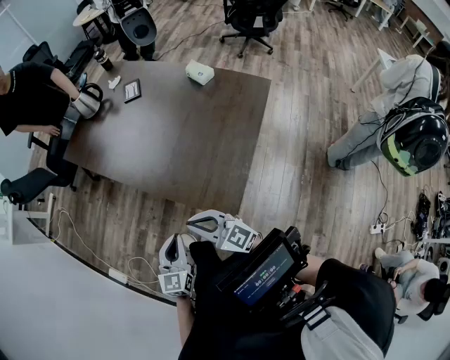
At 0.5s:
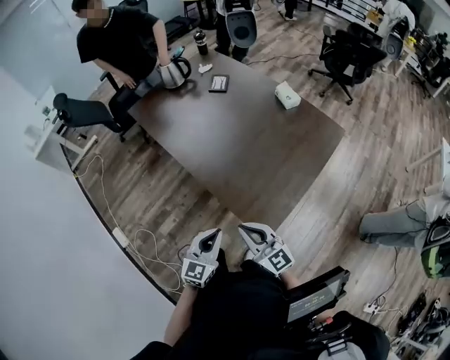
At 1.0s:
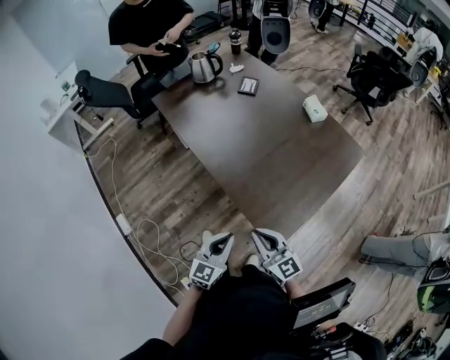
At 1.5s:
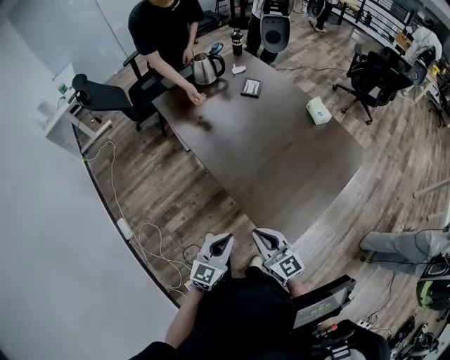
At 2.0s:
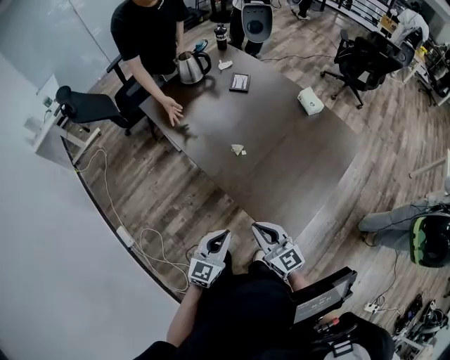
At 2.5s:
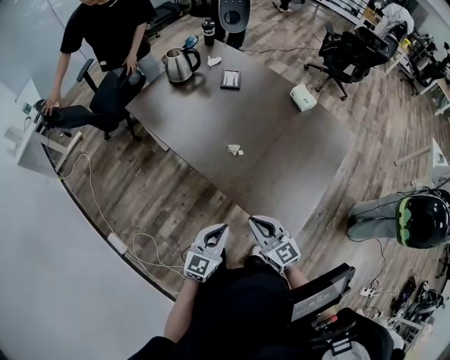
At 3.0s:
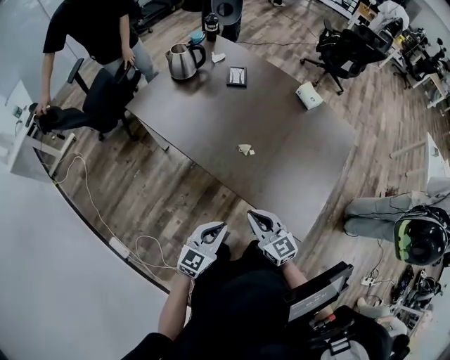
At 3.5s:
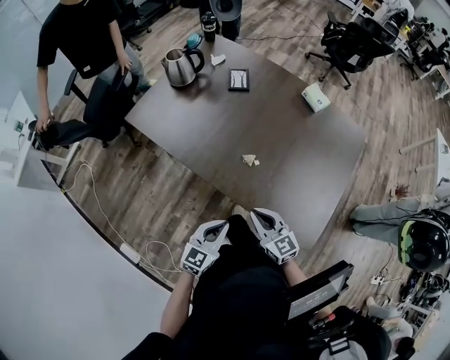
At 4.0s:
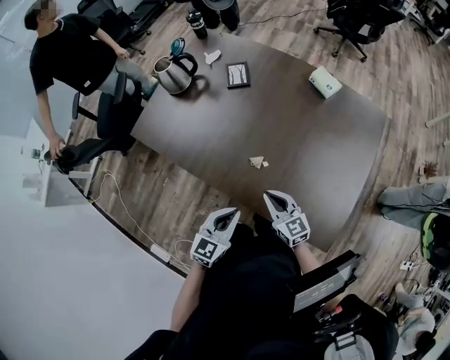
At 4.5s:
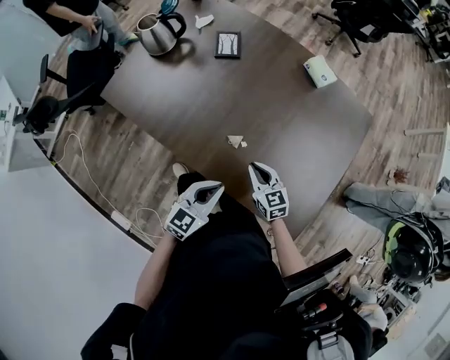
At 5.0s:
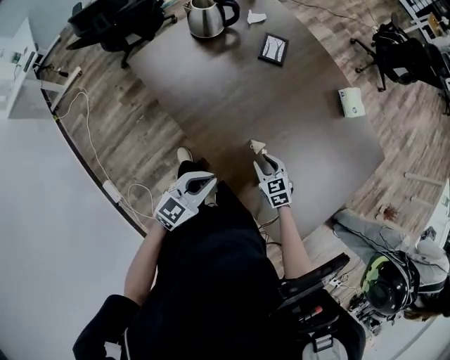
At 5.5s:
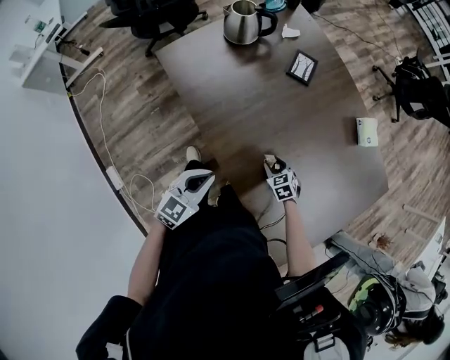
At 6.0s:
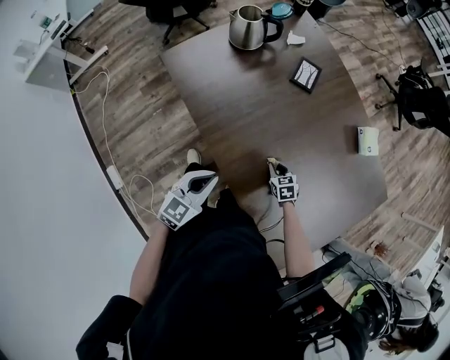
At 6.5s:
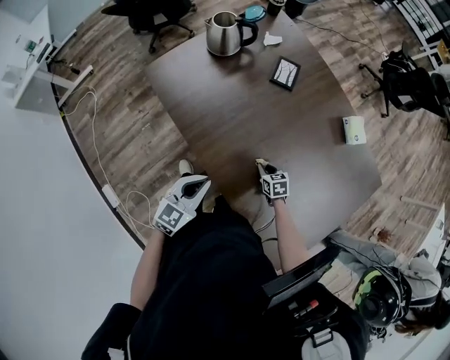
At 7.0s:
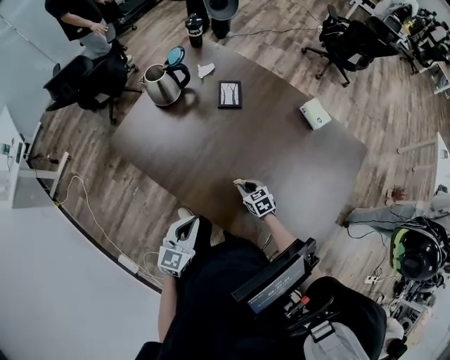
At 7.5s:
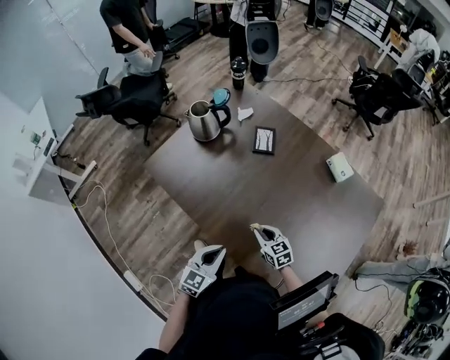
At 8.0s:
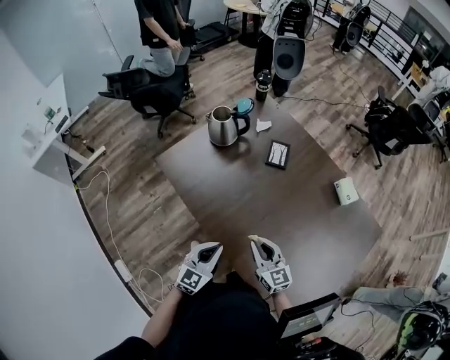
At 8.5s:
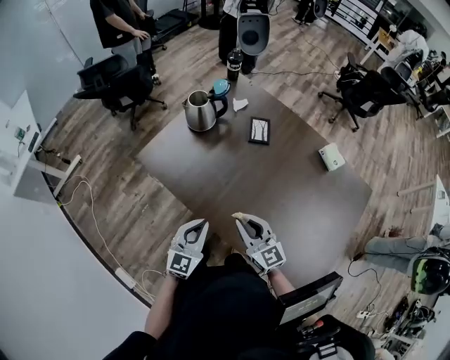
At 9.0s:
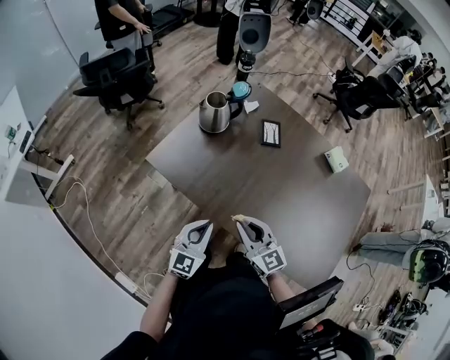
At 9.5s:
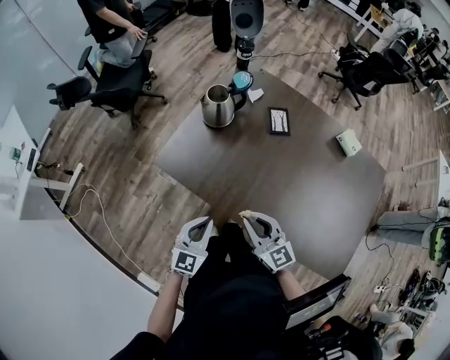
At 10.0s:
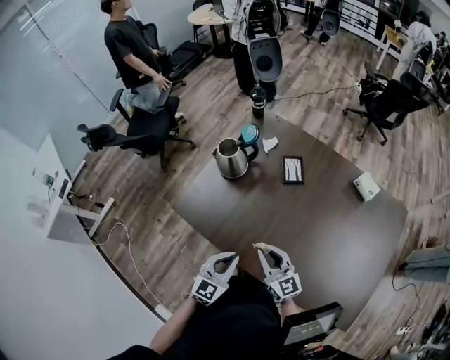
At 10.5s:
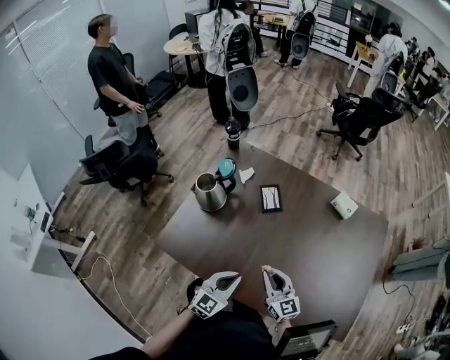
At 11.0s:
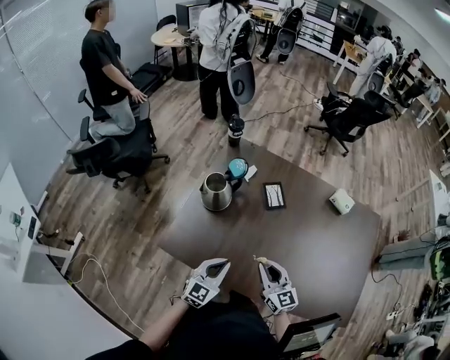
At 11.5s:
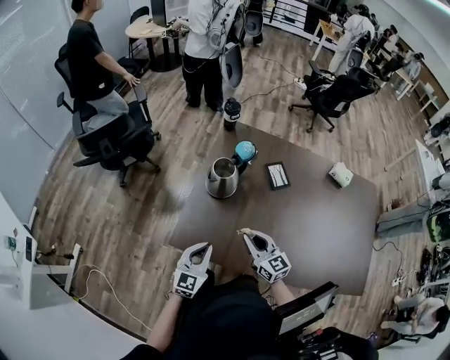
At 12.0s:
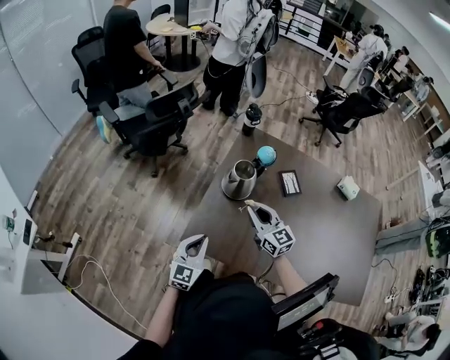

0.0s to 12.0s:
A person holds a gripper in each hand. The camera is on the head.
0.0s to 2.0s: The right gripper is displaced forward by about 5 cm. Meanwhile the left gripper is displaced to the left and forward by some 10 cm.
2.0s to 4.0s: The grippers both shift forward by roughly 25 cm. The right gripper rotates approximately 20 degrees, while the left gripper swivels some 20 degrees.
4.0s to 6.0s: The left gripper is displaced to the left and forward by some 15 cm. The right gripper heads downward and forward, covering roughly 25 cm, angles its fingers downward, by about 40 degrees, and opens, then closes again.
6.0s to 8.0s: The right gripper shifts some 25 cm upward, and tips its fingers upward by about 40 degrees.
8.0s to 10.0s: The right gripper moves to the left and forward, approximately 15 cm. The left gripper moves forward and to the left, some 15 cm.
10.0s to 12.0s: The left gripper is displaced to the left by about 30 cm, while the right gripper shifts roughly 30 cm to the left and forward.

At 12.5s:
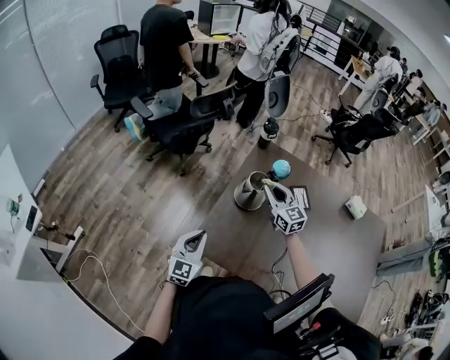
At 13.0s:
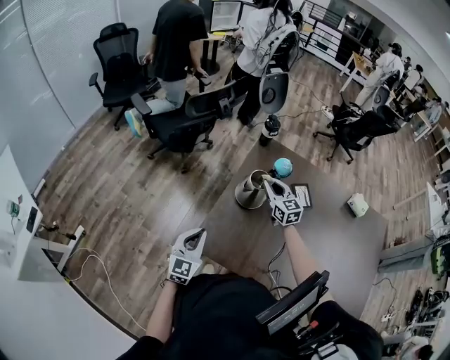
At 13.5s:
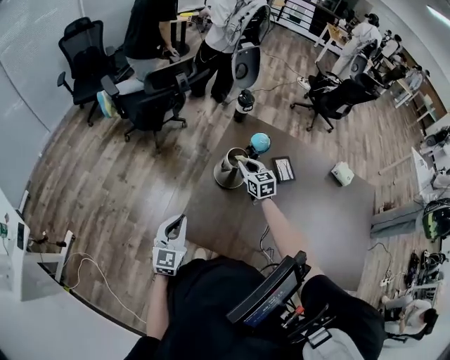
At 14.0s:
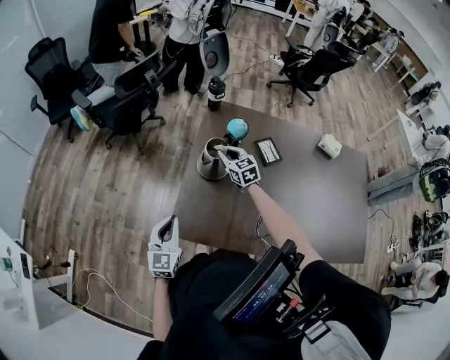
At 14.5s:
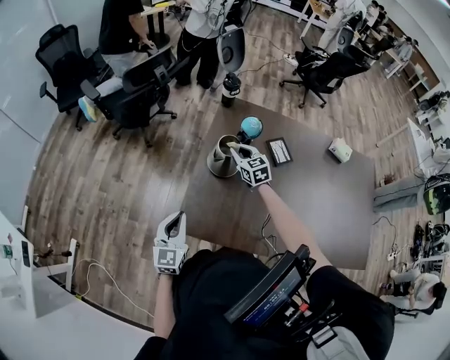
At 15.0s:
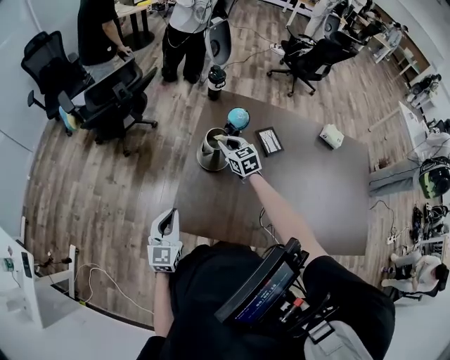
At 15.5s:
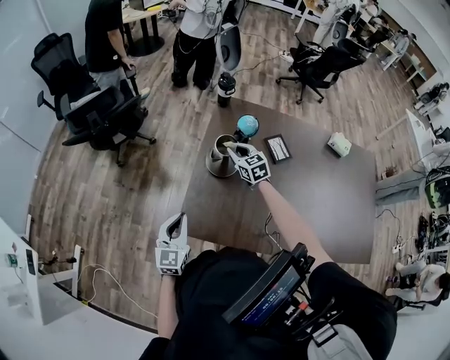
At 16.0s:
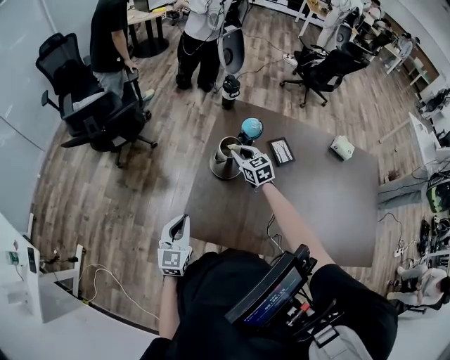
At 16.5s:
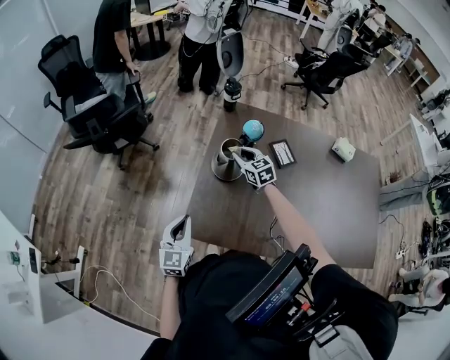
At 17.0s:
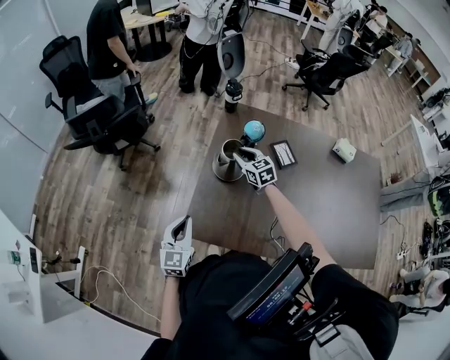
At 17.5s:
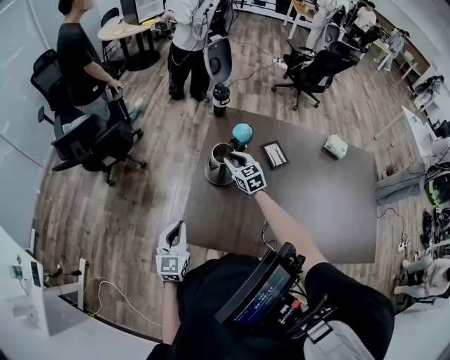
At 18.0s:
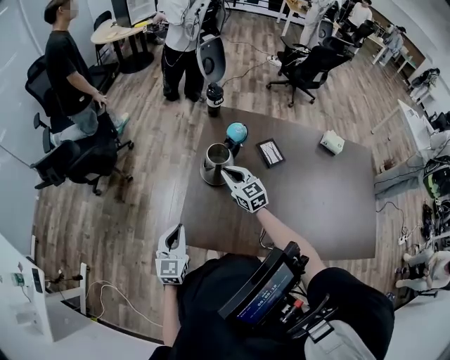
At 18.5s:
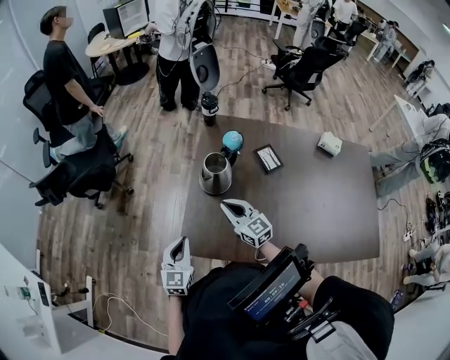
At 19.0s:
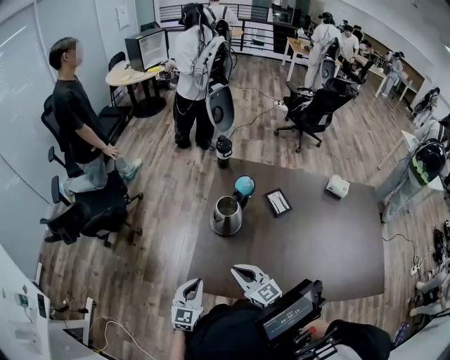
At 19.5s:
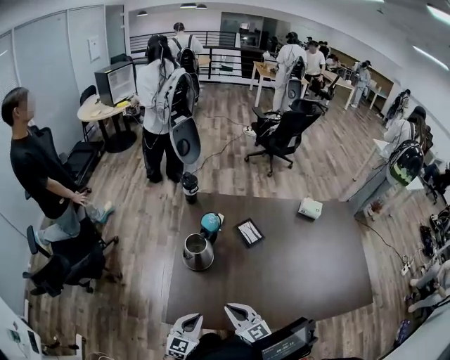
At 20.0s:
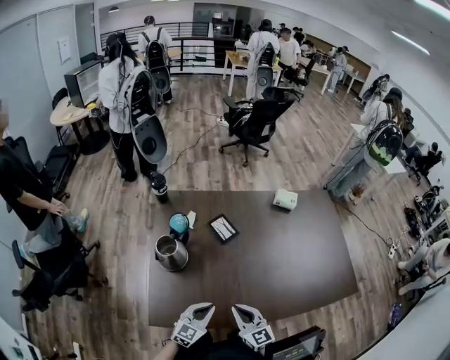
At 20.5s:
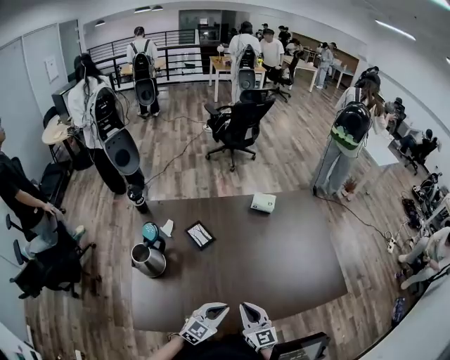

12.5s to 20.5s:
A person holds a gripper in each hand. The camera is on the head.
12.5s to 14.5s: The right gripper travels downward and forward by approximately 15 cm, and turns by some 20 degrees.
14.5s to 16.5s: Neither gripper changes place.
16.5s to 18.5s: The right gripper travels backward by roughly 15 cm.
18.5s to 20.5s: The right gripper shifts by approximately 40 cm, and swivels about 40 degrees; the left gripper shifts by some 40 cm, and rotates about 60 degrees.

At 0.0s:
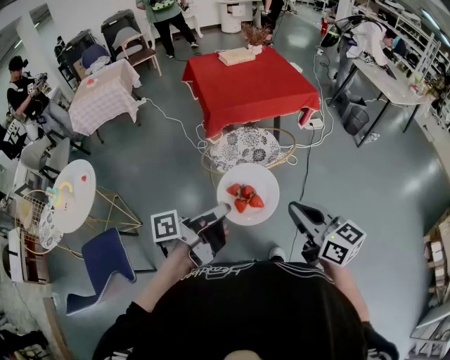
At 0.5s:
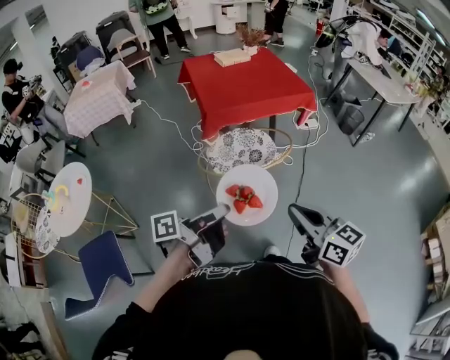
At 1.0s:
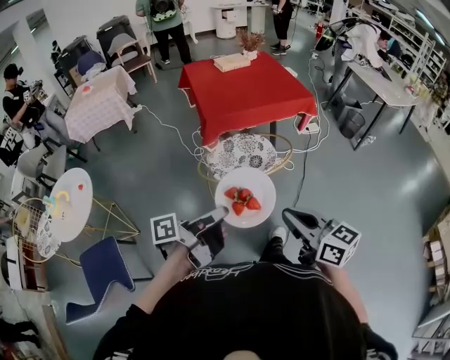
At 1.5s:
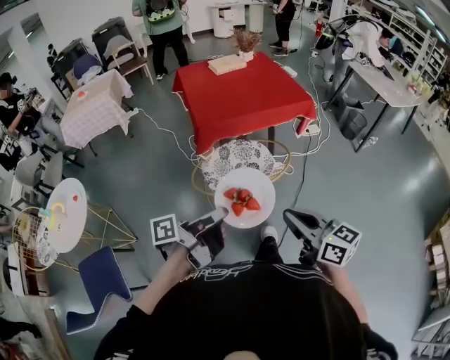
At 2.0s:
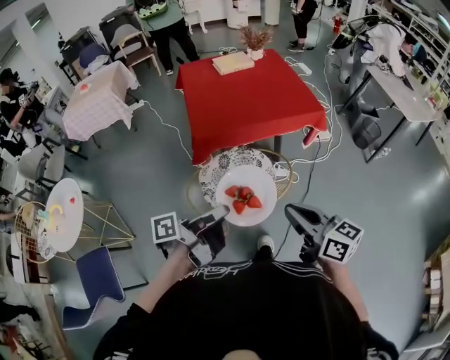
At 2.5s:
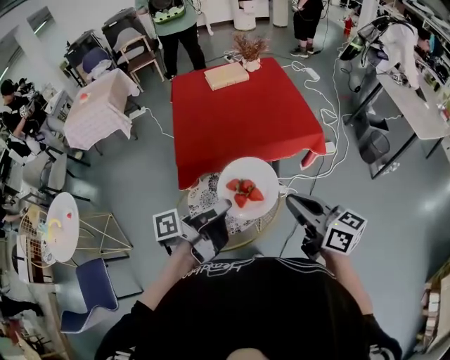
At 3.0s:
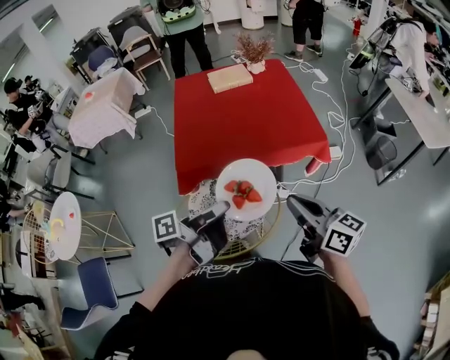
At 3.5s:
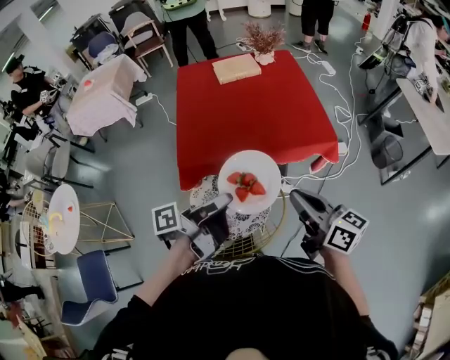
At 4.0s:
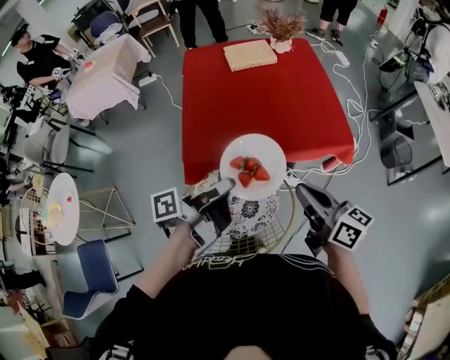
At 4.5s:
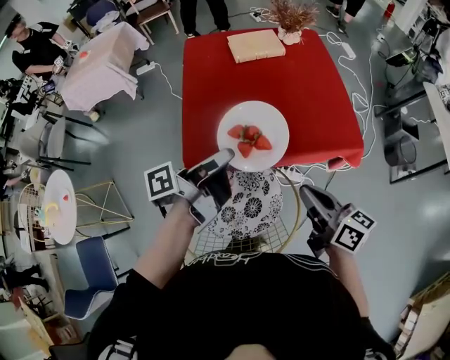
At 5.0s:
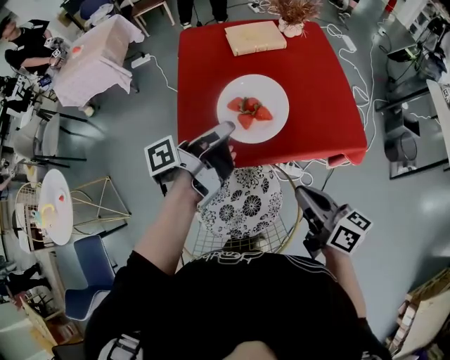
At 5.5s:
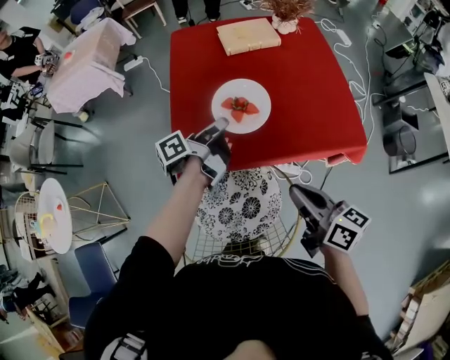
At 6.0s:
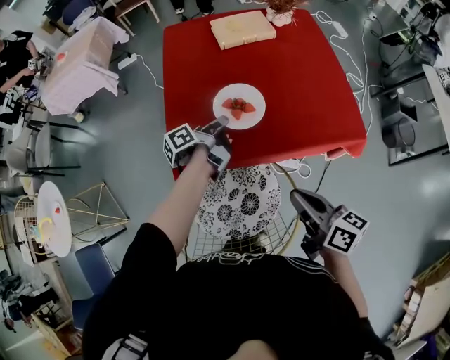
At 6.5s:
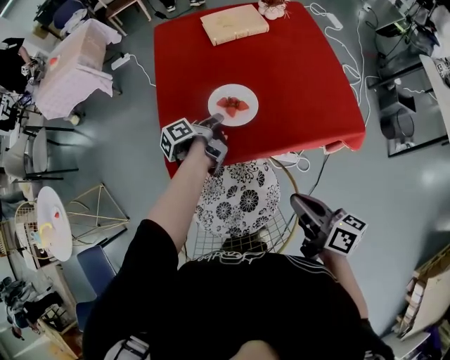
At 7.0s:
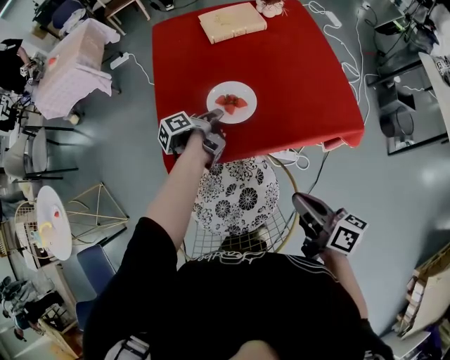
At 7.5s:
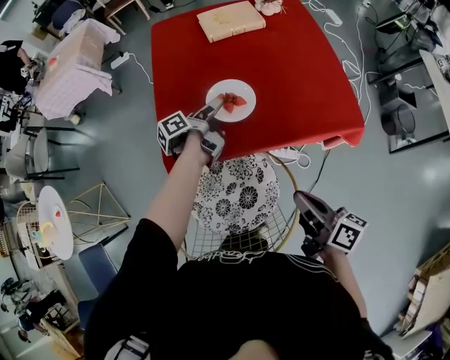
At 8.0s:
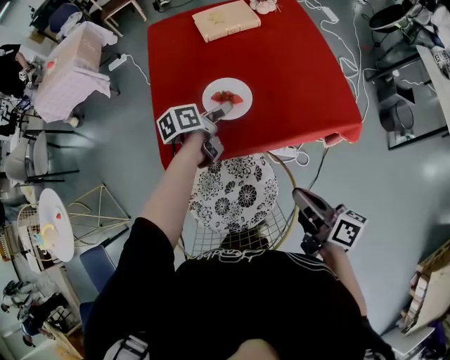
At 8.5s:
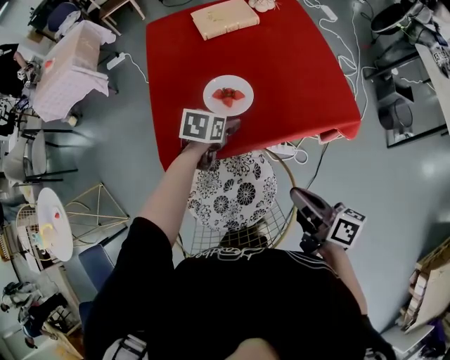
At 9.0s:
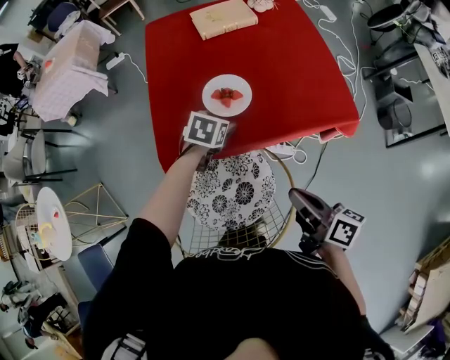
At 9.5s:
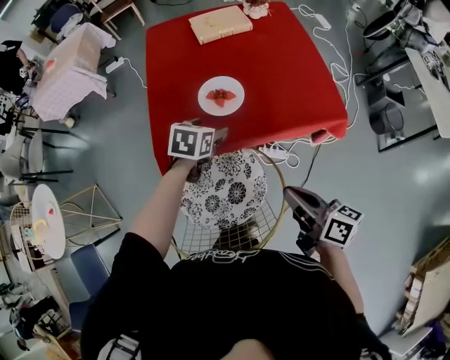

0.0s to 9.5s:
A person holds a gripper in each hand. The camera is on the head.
0.0s to 2.0s: The grippers both shift forward by roughly 20 cm.
2.0s to 4.0s: The grippers both shift forward by approximately 30 cm.
4.0s to 5.5s: The right gripper travels downward and forward by some 10 cm; the left gripper shifts some 25 cm forward and downward.
5.5s to 7.5s: The right gripper goes approximately 5 cm downward. The left gripper heads downward, covering roughly 10 cm, and opens up.
7.5s to 9.5s: The left gripper goes roughly 10 cm backward, and twists about 70 degrees clockwise, seen from behind.
